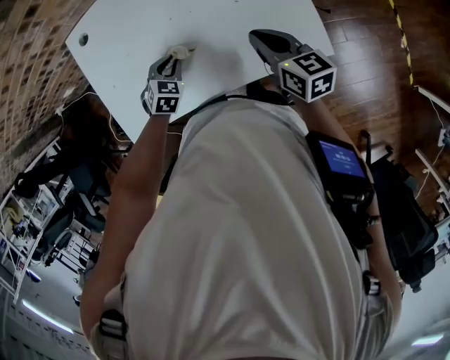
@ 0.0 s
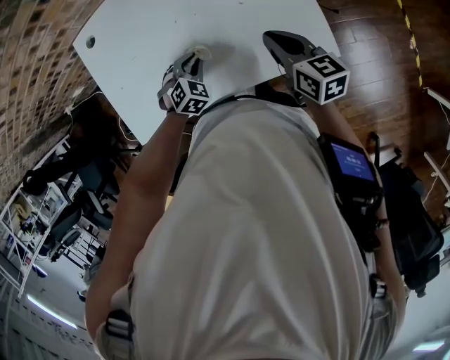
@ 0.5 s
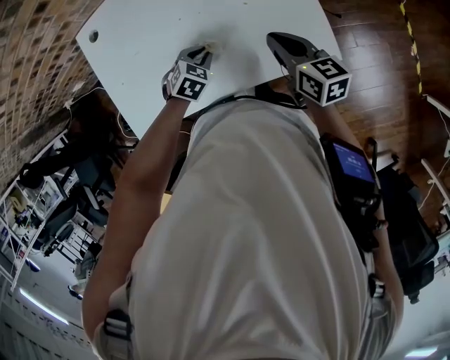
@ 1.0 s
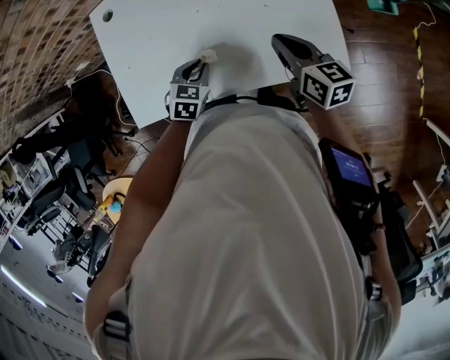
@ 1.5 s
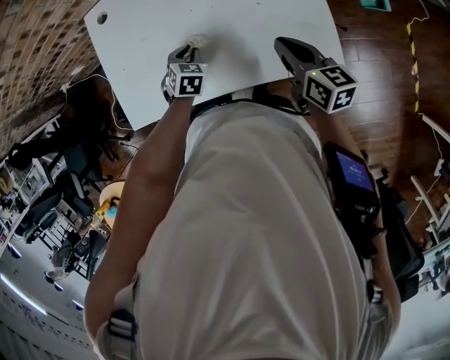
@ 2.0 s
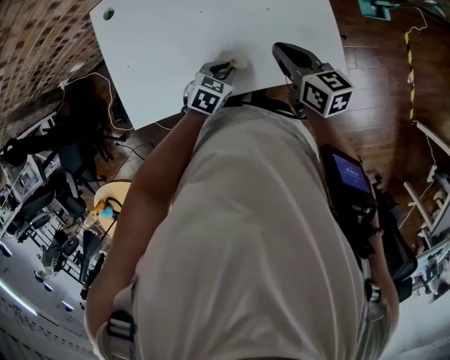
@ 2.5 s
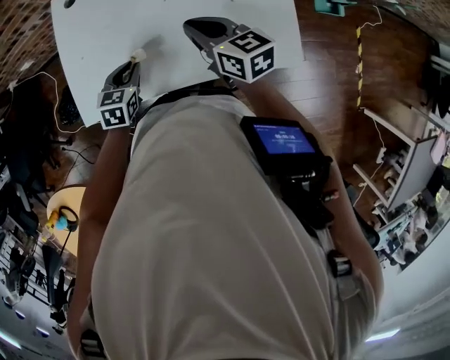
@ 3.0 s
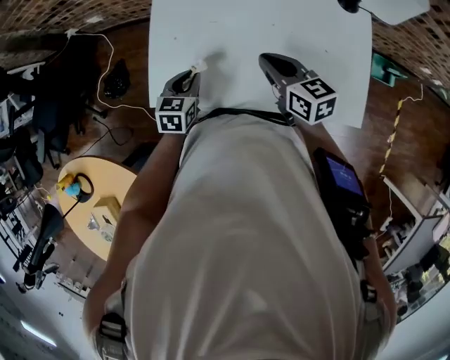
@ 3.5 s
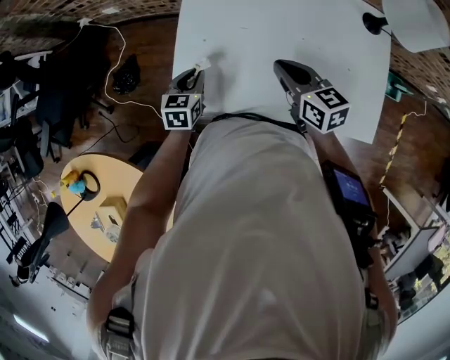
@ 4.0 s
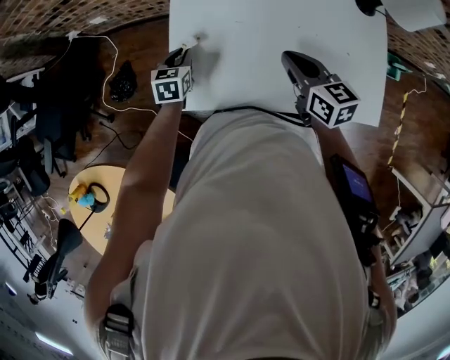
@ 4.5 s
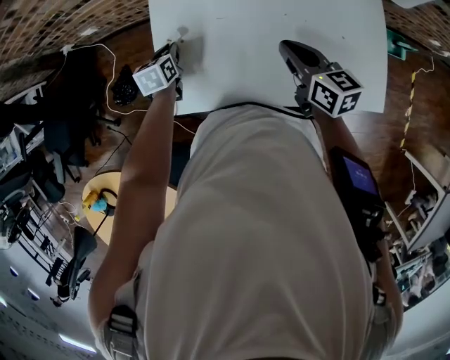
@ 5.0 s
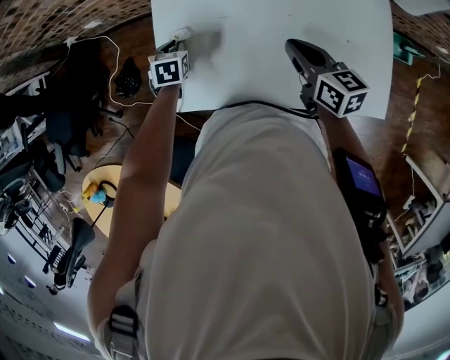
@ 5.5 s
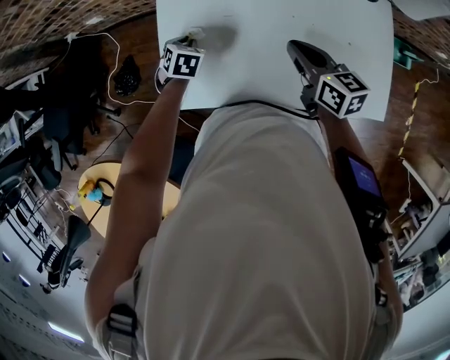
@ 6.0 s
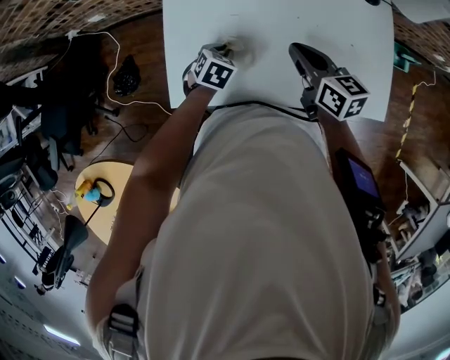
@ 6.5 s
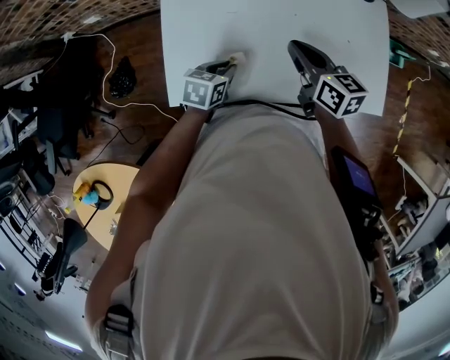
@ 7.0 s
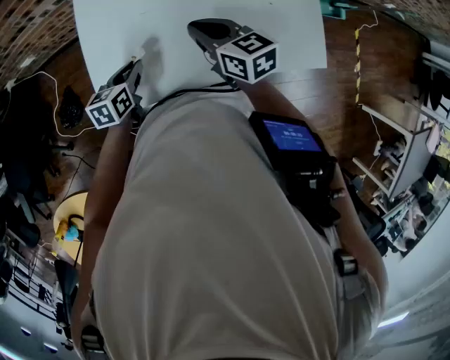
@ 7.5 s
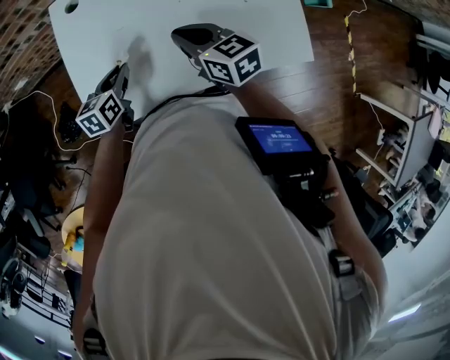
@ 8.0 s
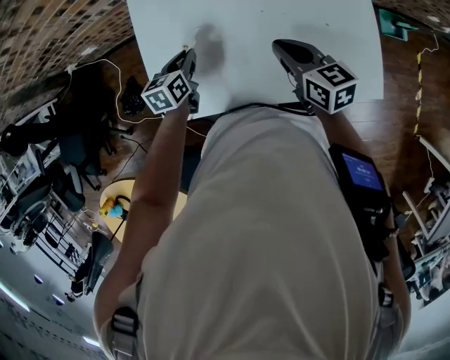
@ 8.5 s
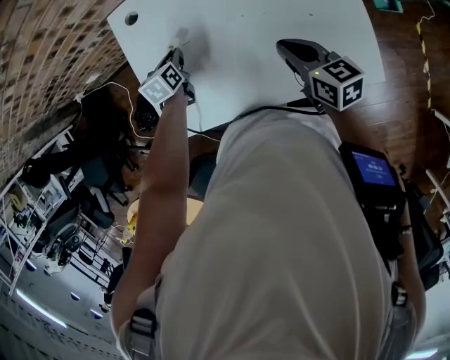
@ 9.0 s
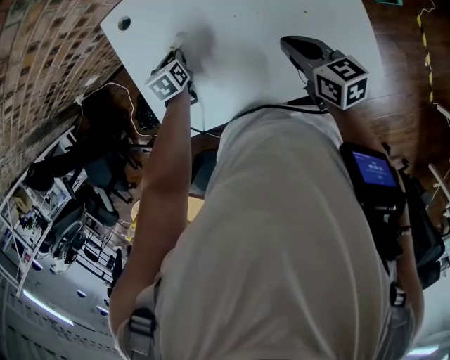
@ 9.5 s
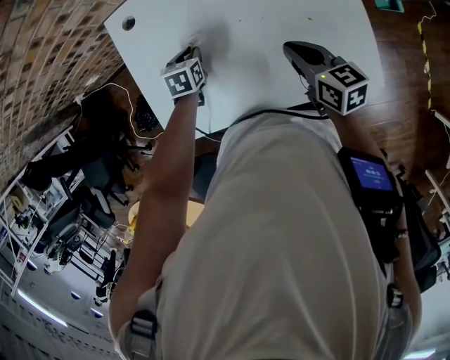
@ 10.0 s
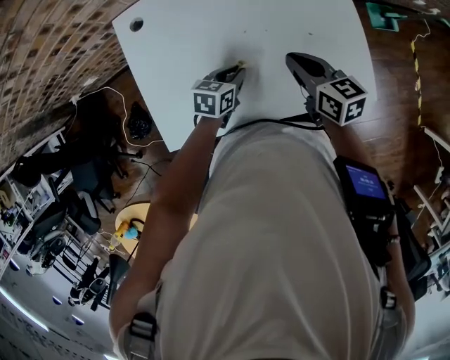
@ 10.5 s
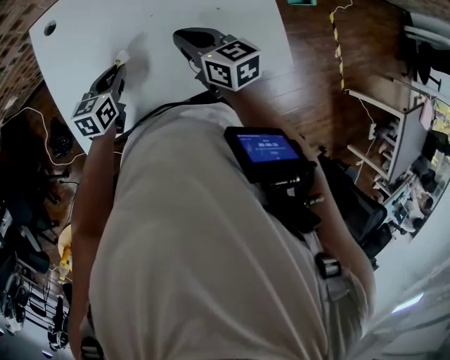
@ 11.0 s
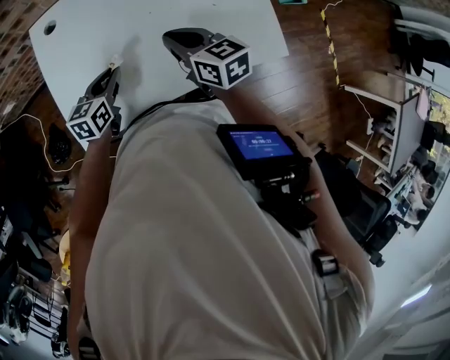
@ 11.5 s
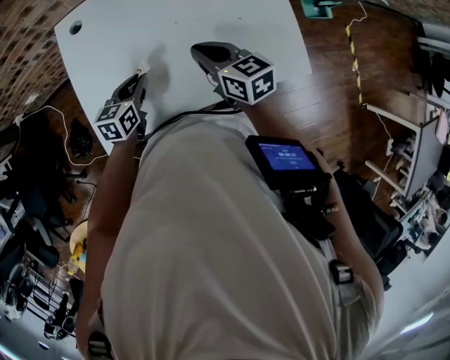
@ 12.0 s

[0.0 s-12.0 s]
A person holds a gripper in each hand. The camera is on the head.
2.0 to 4.0 s: The right gripper ends up some 30 cm from where it was, and turns by roughly 30 degrees; the left gripper shifts by approximately 30 cm, and swivels roughly 40 degrees.
4.0 to 6.0 s: The right gripper shifts some 10 cm to the right; the left gripper moves forward and downward, about 10 cm, and turns by about 30 degrees.
6.0 to 8.0 s: The left gripper ends up about 10 cm from where it was, and rotates roughly 40 degrees. Meanwhile the right gripper ends up about 5 cm from where it was.
8.0 to 10.0 s: The left gripper shifts some 15 cm forward and to the right, and turns by about 20 degrees. Meanwhile the right gripper is displaced to the right by some 15 cm.
10.0 to 12.0 s: The left gripper travels backward by some 10 cm, goes to the right and returns, approximately 10 cm each way, and rotates some 30 degrees, while the right gripper moves to the left, roughly 5 cm.

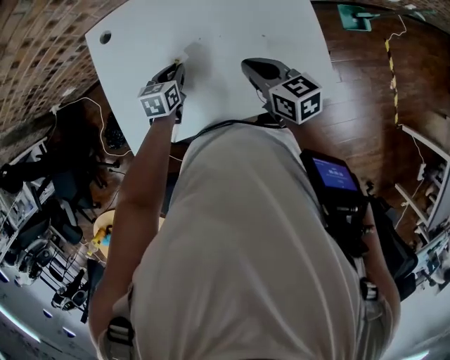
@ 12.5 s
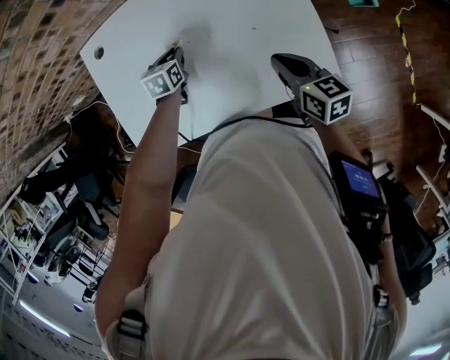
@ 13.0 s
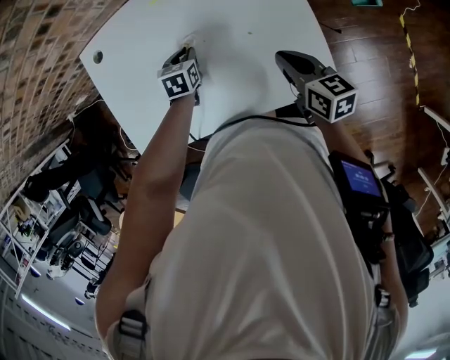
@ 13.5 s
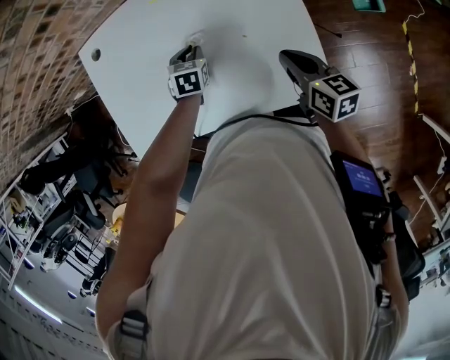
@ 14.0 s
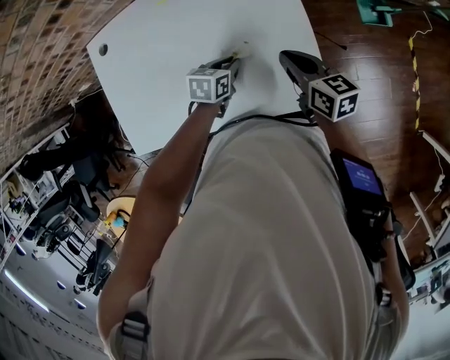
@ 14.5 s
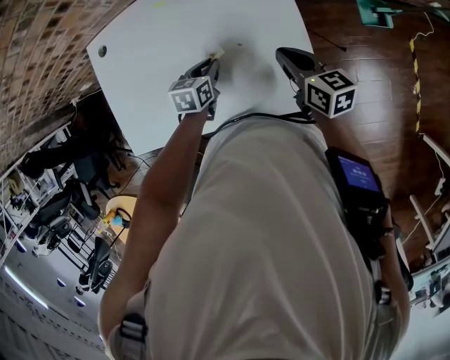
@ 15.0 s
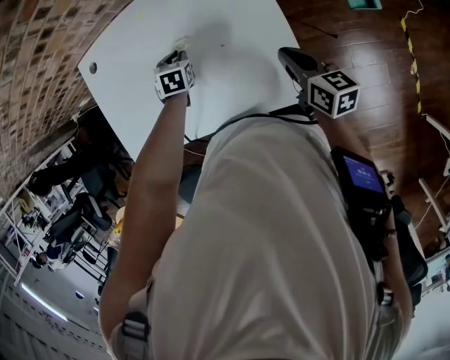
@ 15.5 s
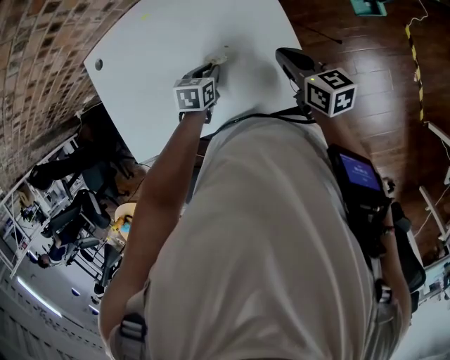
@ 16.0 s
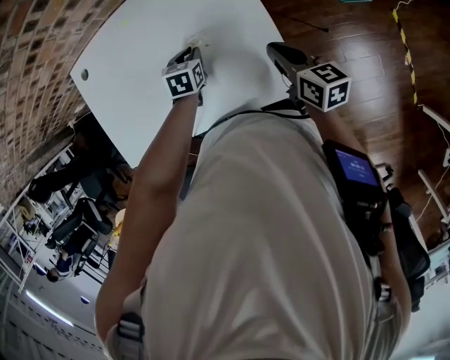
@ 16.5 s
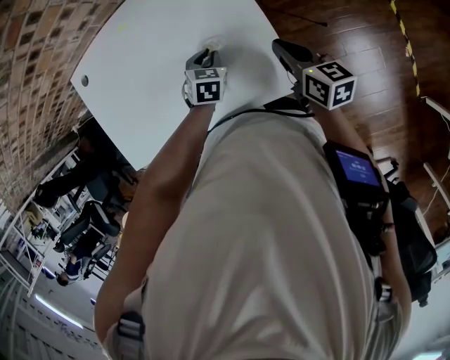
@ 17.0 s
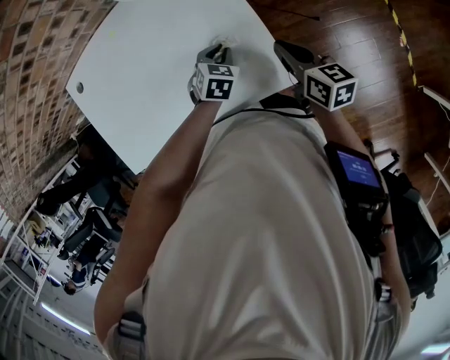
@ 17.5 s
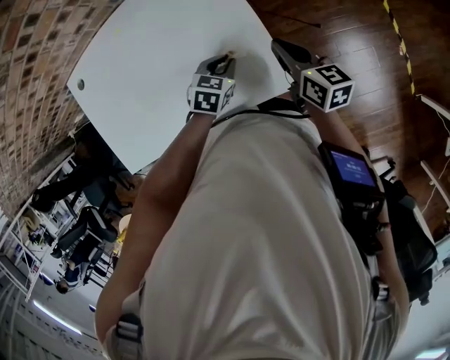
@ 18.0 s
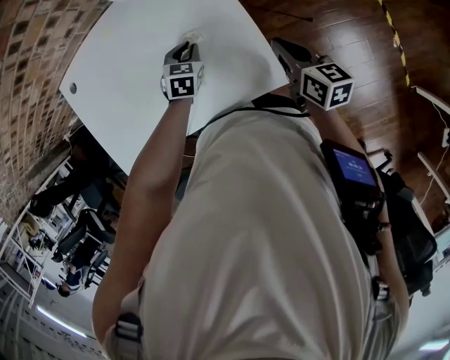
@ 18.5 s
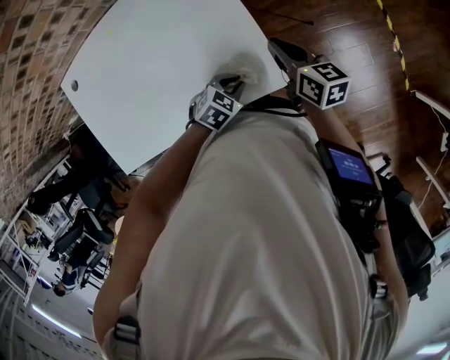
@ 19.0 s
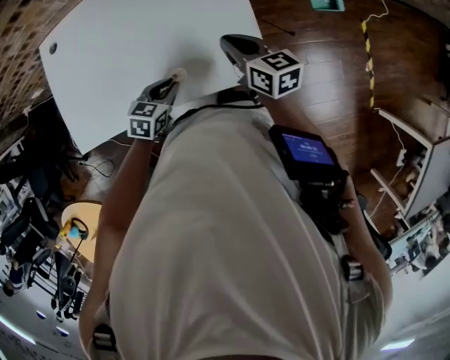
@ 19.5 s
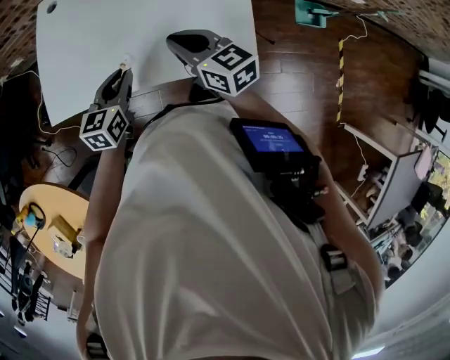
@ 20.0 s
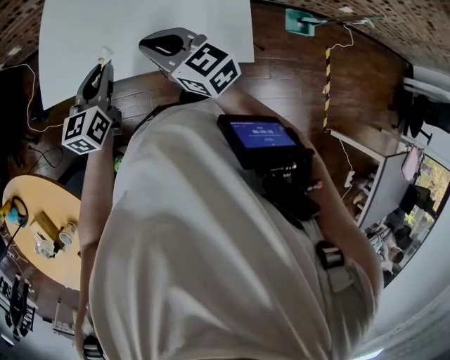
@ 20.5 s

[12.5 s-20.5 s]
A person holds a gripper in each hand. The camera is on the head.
12.5 to 14.5 s: The grippers both shift to the right by some 20 cm.
14.5 to 16.5 s: The left gripper goes forward and backward, roughly 10 cm each way, reversing 2 times. Meanwhile the right gripper moves to the right, approximately 5 cm.
16.5 to 18.5 s: Both grippers travel together to the right, roughly 5 cm.
18.5 to 20.5 s: The left gripper moves roughly 35 cm, and angles its fingers upward, by about 30 degrees. The right gripper shifts by approximately 35 cm, and swivels roughly 50 degrees.

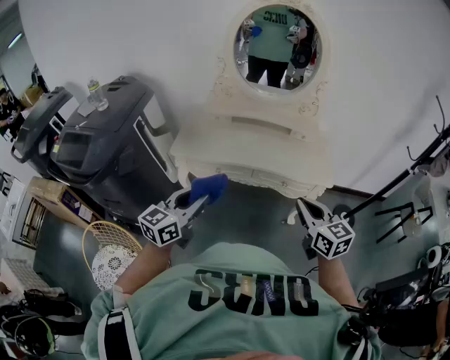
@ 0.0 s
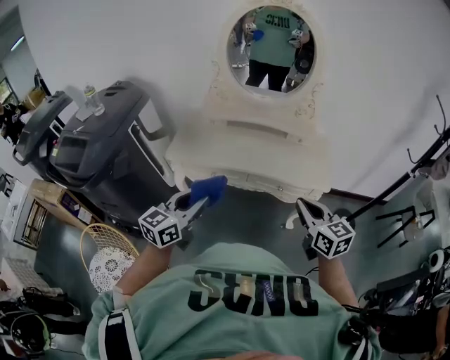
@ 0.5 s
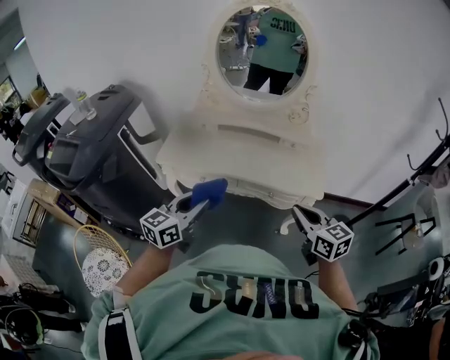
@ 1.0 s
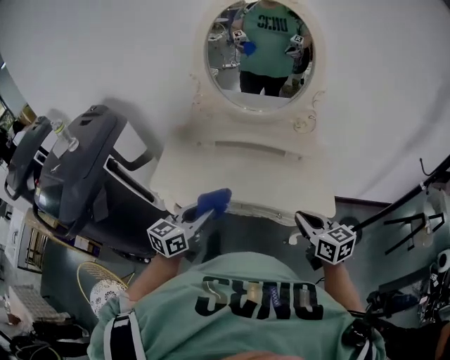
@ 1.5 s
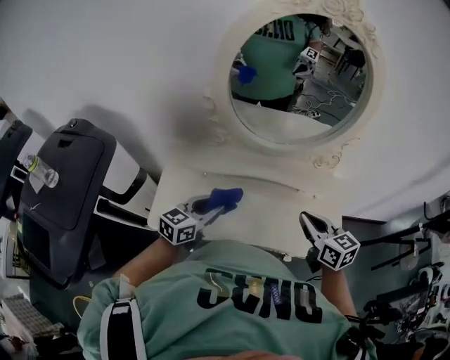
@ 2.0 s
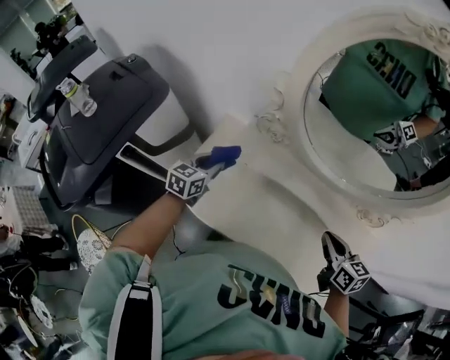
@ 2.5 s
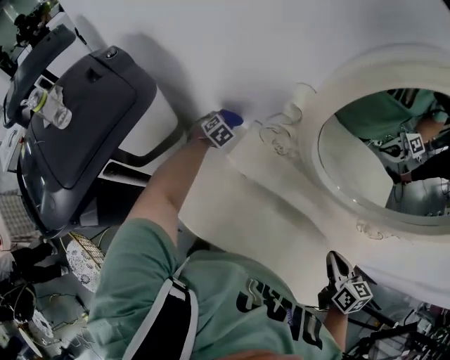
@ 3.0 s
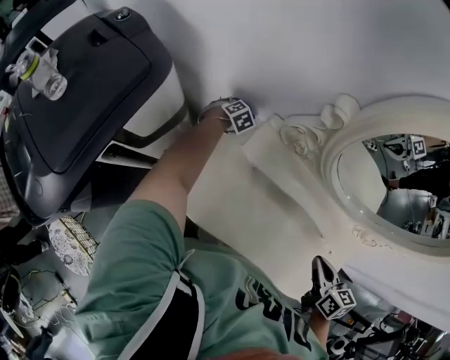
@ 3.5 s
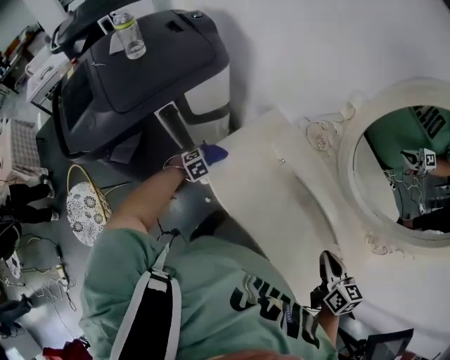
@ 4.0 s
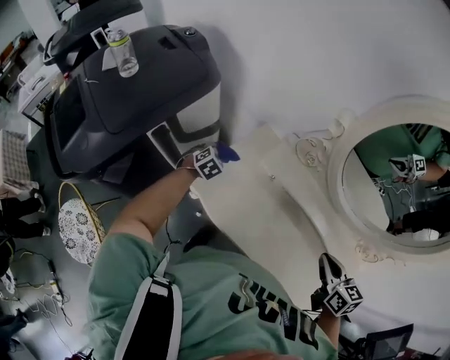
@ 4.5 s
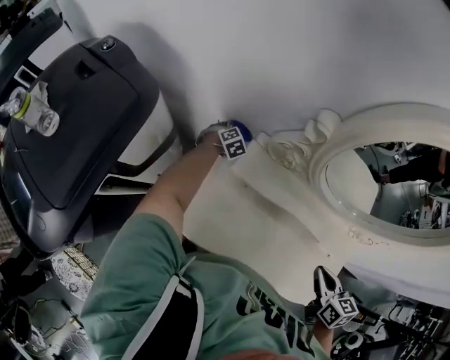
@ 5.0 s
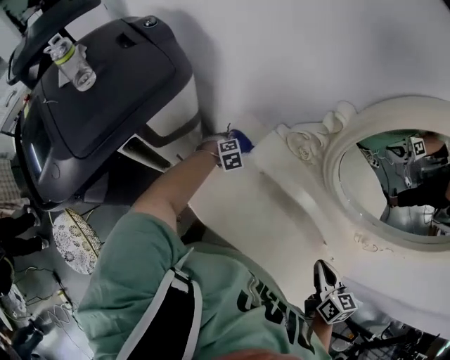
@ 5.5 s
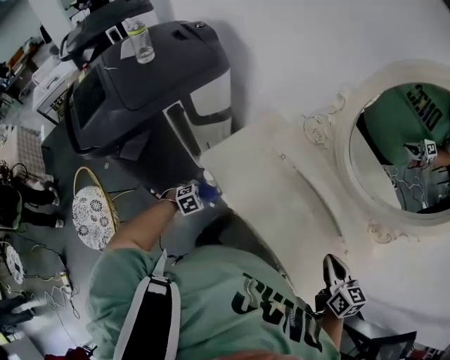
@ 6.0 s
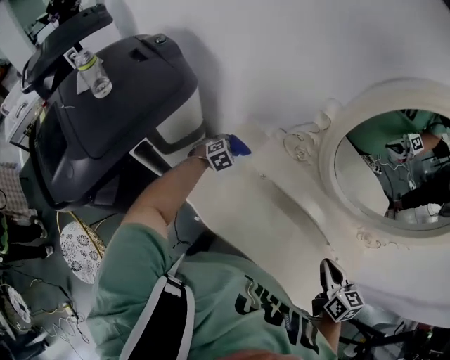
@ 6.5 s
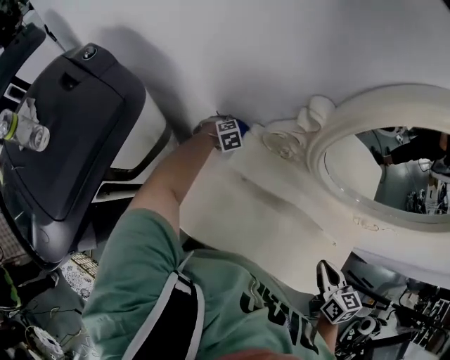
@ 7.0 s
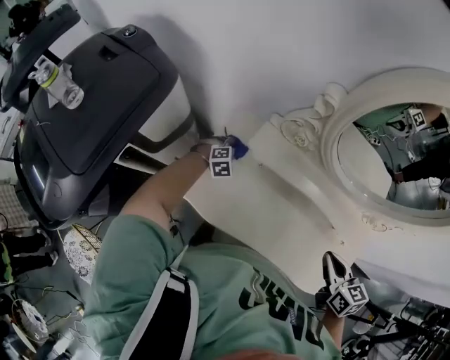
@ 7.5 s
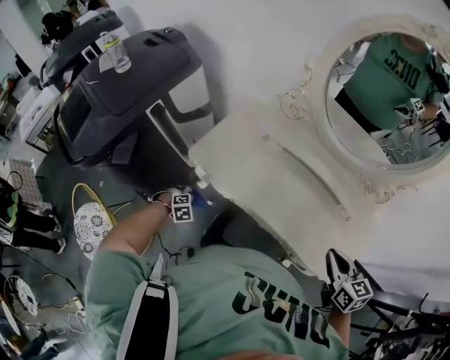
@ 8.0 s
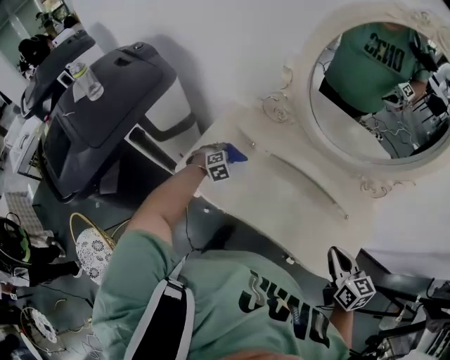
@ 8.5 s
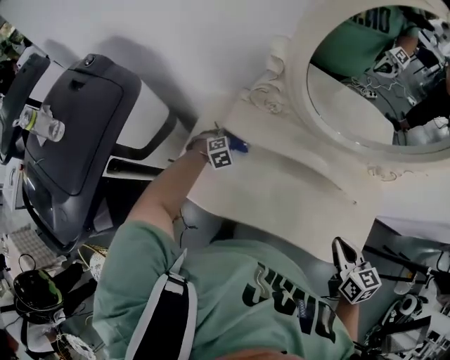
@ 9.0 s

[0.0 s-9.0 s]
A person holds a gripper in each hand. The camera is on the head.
0.0 to 2.0 s: Both grippers are carried forward, approximately 40 cm.
2.0 to 4.5 s: The right gripper changes place by approximately 10 cm, and turns by some 20 degrees, while the left gripper shifts by approximately 35 cm, and tilts its fingers roughly 40 degrees downward.
4.5 to 7.0 s: The right gripper moves approximately 10 cm backward and comes back, and swivels roughly 20 degrees. Meanwhile the left gripper goes forward and backward, roughly 50 cm each way, reversing 2 times, and changes its angle by about 30 degrees.
